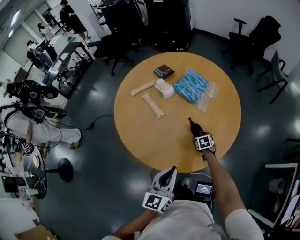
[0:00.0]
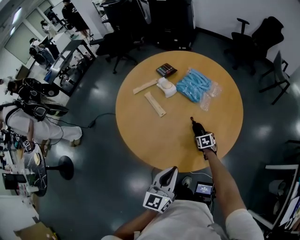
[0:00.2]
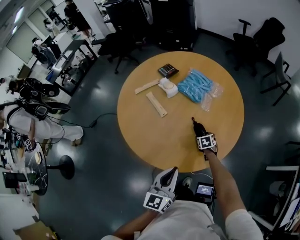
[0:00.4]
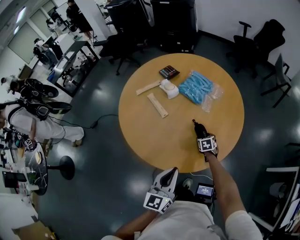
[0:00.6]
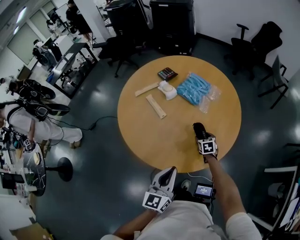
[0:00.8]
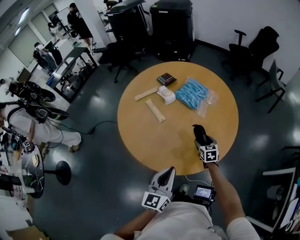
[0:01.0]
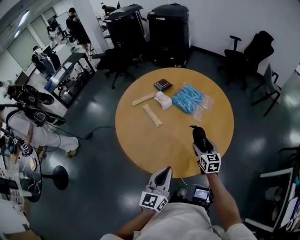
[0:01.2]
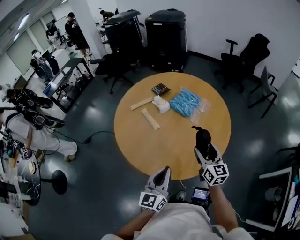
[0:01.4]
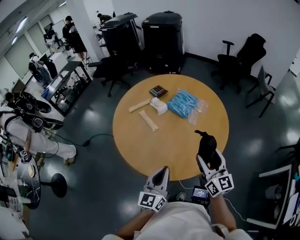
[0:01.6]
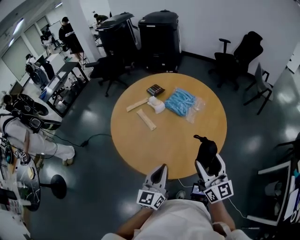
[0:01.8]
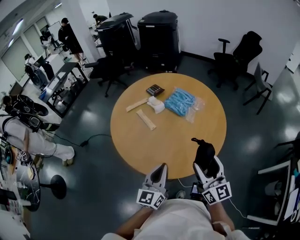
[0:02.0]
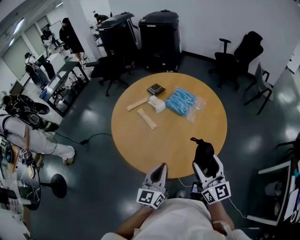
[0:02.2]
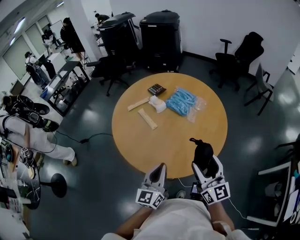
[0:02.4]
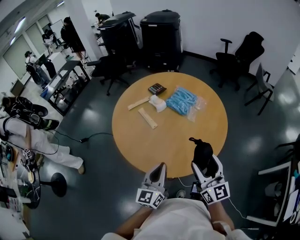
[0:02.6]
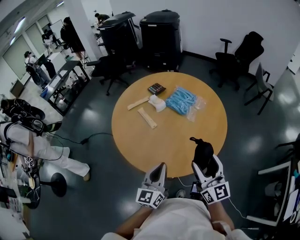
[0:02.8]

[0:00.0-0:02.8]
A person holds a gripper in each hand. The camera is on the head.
0:00.0 to 0:01.4: The right gripper travels upward by roughly 30 cm, and angles its fingers upward, by approximately 50 degrees.
0:01.4 to 0:02.8: The right gripper heads backward and upward, covering approximately 15 cm.

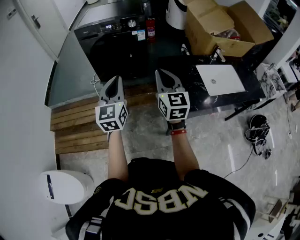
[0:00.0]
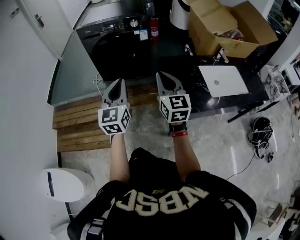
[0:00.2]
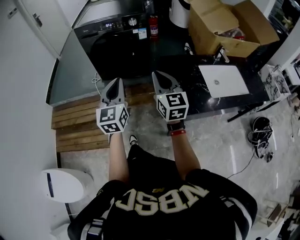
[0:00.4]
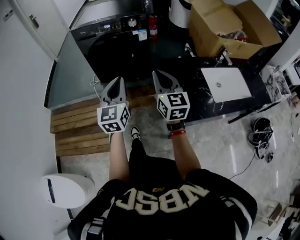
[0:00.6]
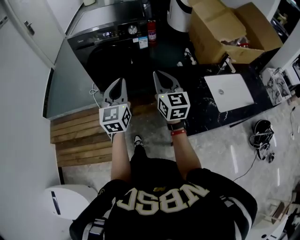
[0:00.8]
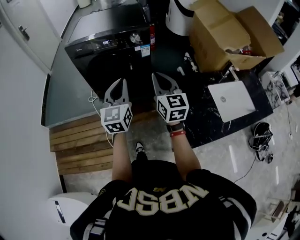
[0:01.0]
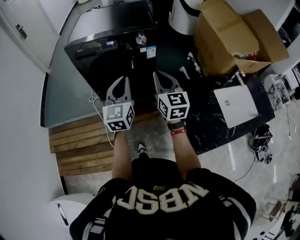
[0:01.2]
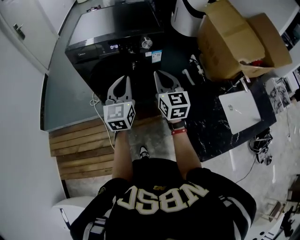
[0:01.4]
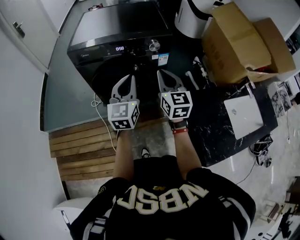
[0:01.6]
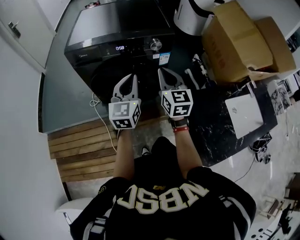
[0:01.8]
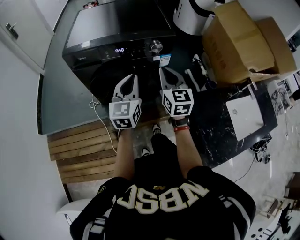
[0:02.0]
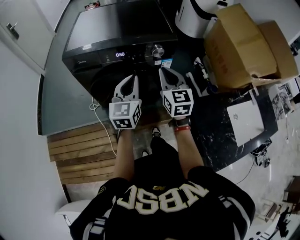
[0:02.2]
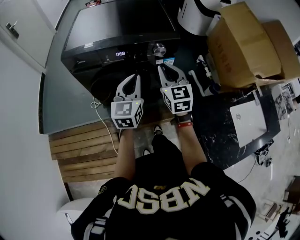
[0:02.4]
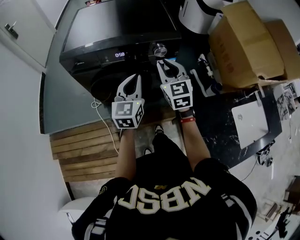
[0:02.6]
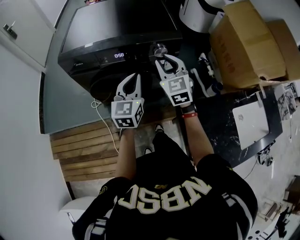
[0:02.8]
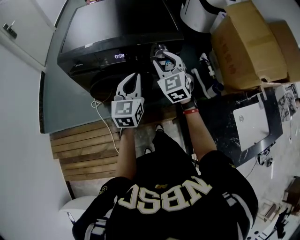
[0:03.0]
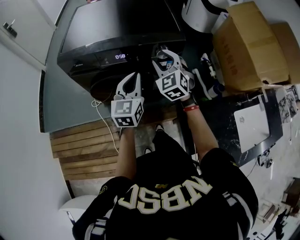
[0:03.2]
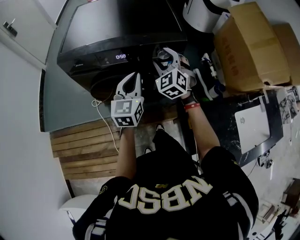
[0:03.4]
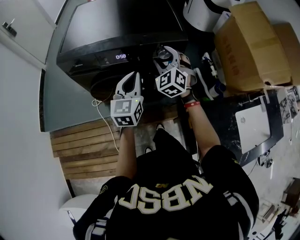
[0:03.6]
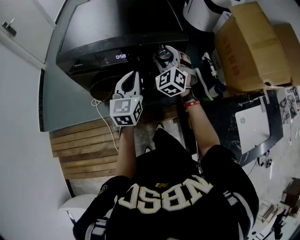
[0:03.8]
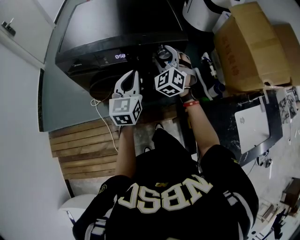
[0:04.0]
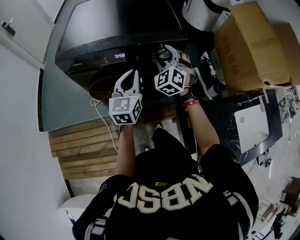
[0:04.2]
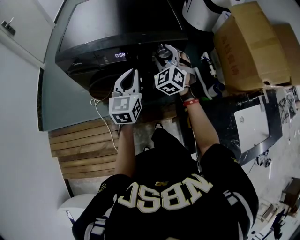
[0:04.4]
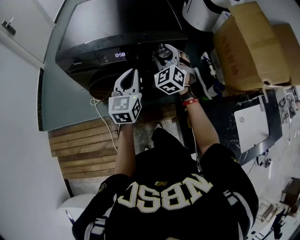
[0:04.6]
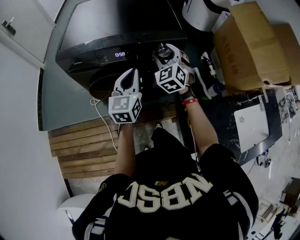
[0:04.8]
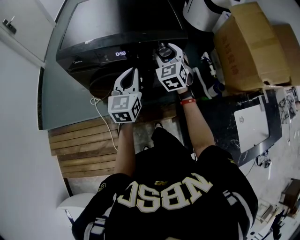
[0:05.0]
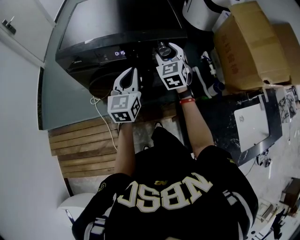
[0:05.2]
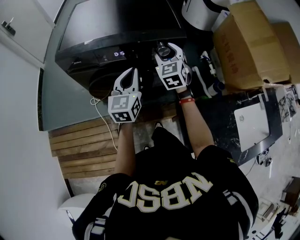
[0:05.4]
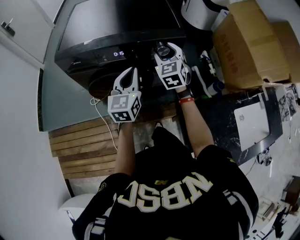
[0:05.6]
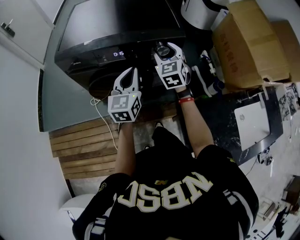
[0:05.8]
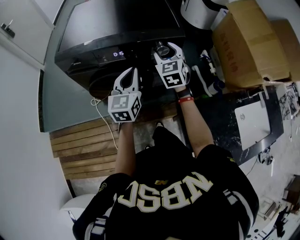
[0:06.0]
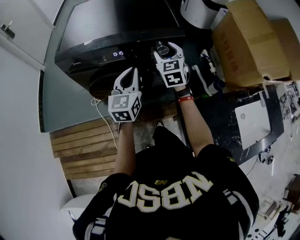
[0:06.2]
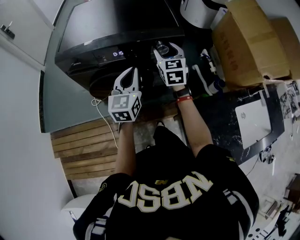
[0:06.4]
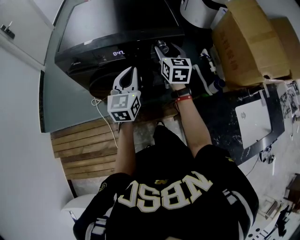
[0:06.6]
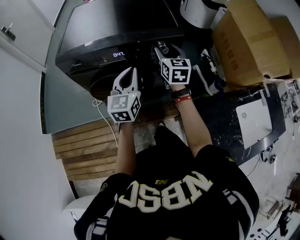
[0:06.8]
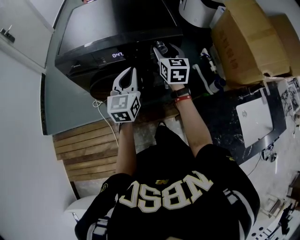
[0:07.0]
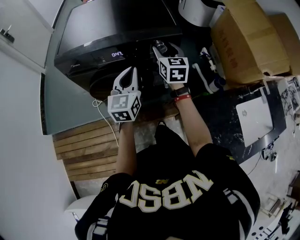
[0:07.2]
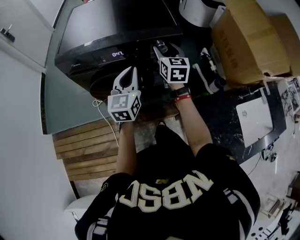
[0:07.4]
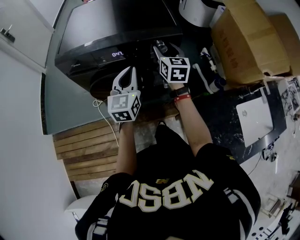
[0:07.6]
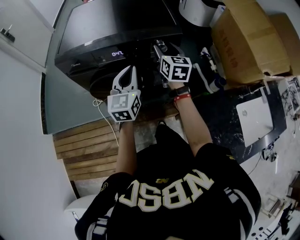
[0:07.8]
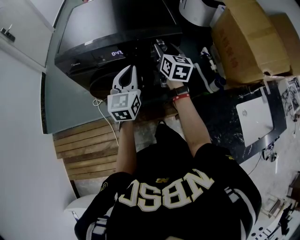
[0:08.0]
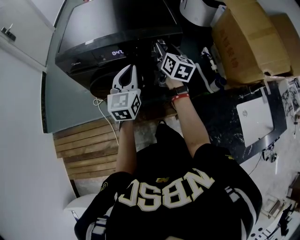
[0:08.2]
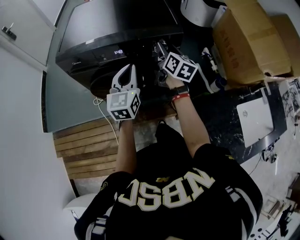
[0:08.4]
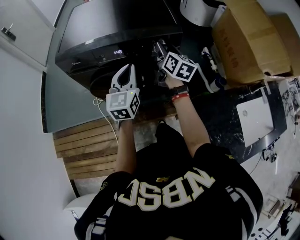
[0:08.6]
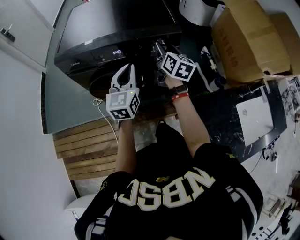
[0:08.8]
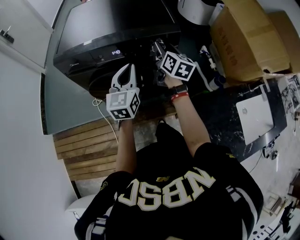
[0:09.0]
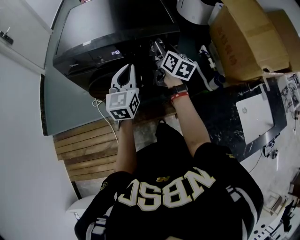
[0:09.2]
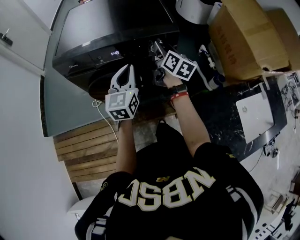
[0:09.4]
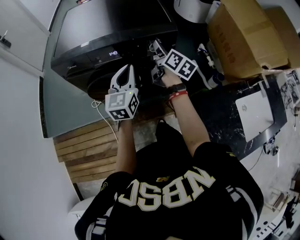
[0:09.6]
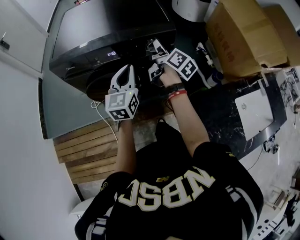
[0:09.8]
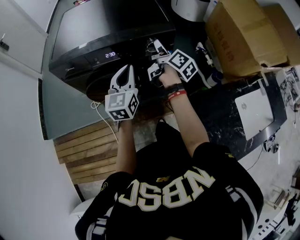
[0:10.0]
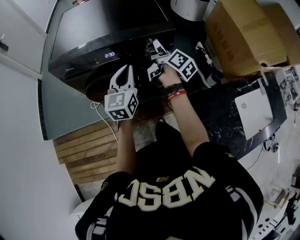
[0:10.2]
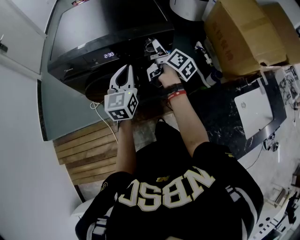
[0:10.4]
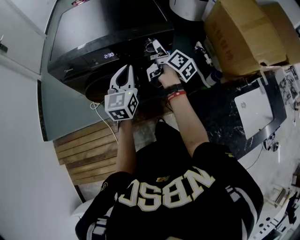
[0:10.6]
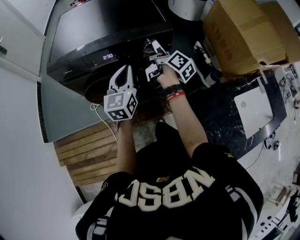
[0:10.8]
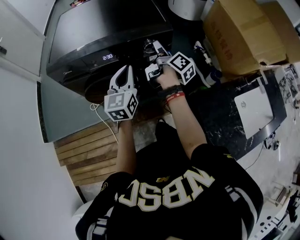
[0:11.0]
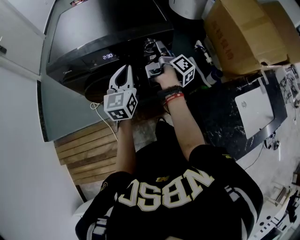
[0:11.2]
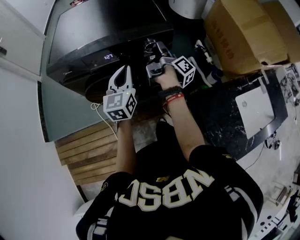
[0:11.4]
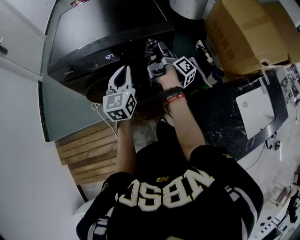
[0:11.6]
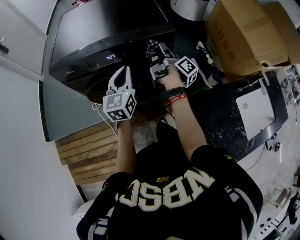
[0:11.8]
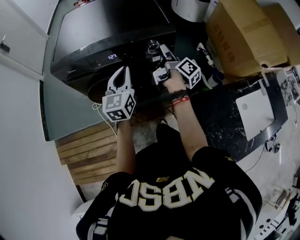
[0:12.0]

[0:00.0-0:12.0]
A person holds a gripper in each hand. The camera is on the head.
0:00.0 to 0:01.6: The pair of grippers is taken forward, some 40 cm.
0:01.6 to 0:03.0: The two grippers go about 15 cm forward. The right gripper changes its angle by about 30 degrees, and opens up.
0:03.0 to 0:04.4: The right gripper is displaced forward by approximately 5 cm, and swivels roughly 20 degrees.
0:04.4 to 0:06.0: The right gripper swivels approximately 30 degrees.
0:06.0 to 0:07.6: The right gripper turns by some 30 degrees.
0:07.6 to 0:09.0: The right gripper rotates roughly 20 degrees.
0:09.0 to 0:10.4: The right gripper turns by roughly 40 degrees.

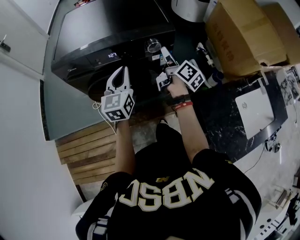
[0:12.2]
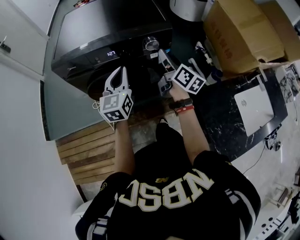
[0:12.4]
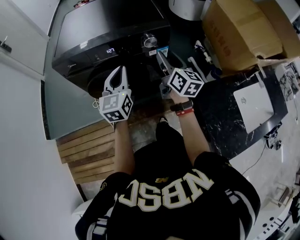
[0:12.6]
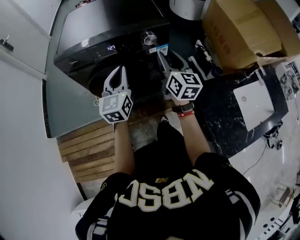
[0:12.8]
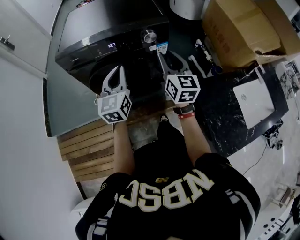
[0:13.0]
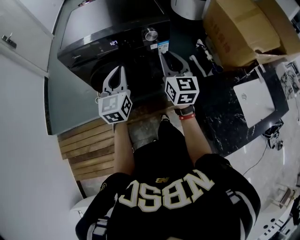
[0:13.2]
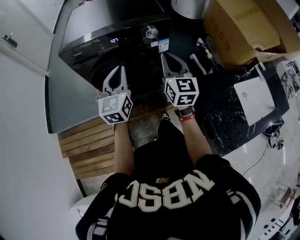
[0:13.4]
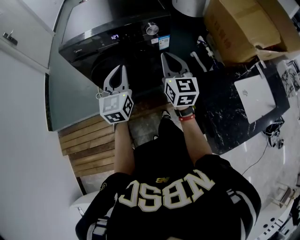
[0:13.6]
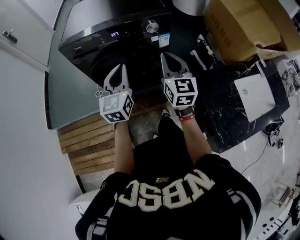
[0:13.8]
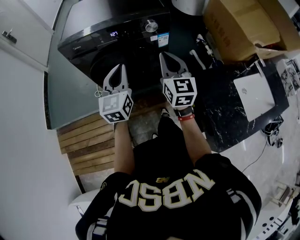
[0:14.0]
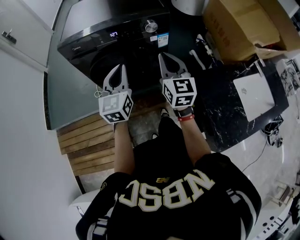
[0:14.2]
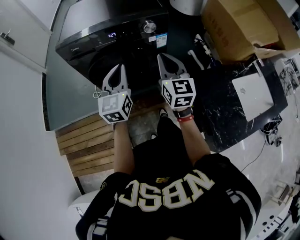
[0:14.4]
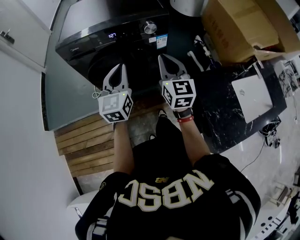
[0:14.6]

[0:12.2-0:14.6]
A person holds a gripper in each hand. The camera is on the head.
0:12.2 to 0:13.4: Both grippers move backward, some 15 cm. The right gripper rotates around the line of its fingers by approximately 60 degrees, counterclockwise from behind, and closes up.
0:13.4 to 0:14.6: The grippers move only a little.

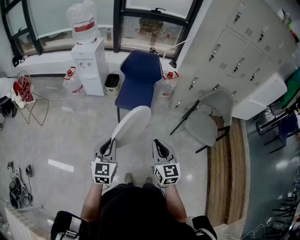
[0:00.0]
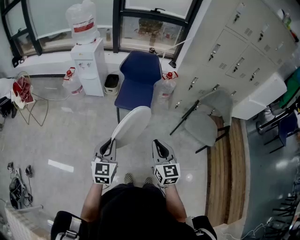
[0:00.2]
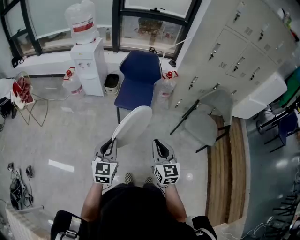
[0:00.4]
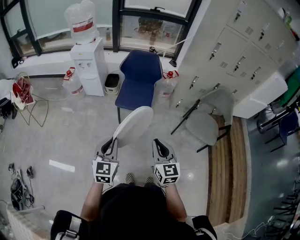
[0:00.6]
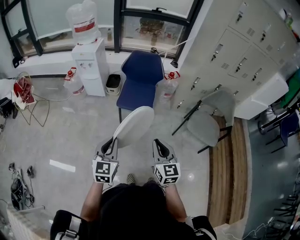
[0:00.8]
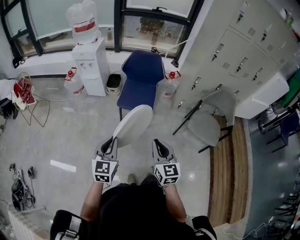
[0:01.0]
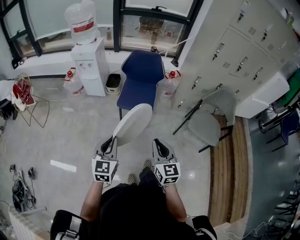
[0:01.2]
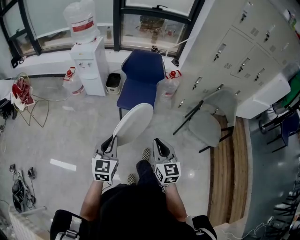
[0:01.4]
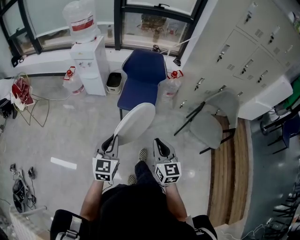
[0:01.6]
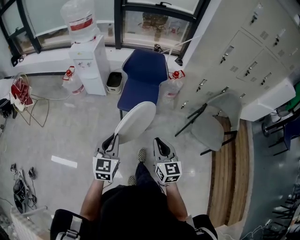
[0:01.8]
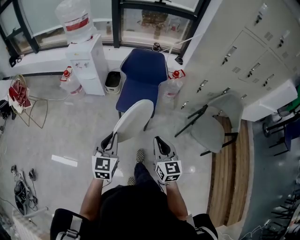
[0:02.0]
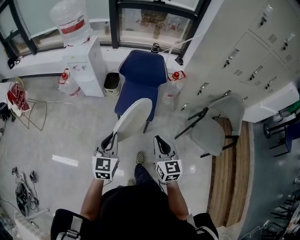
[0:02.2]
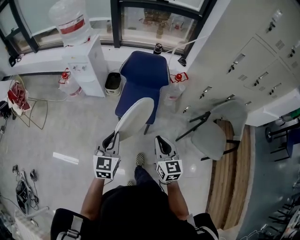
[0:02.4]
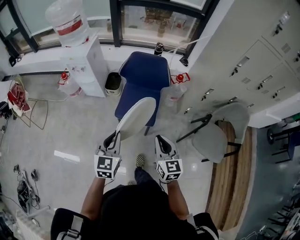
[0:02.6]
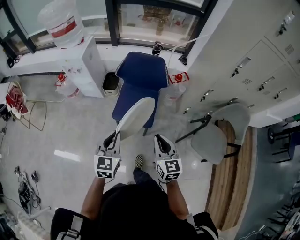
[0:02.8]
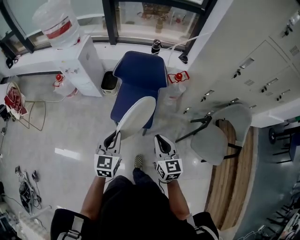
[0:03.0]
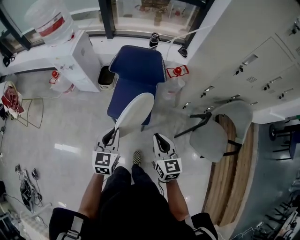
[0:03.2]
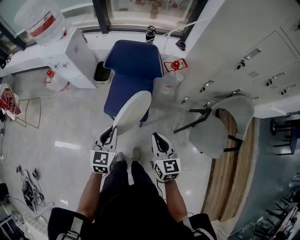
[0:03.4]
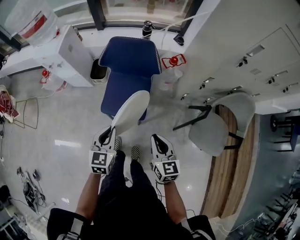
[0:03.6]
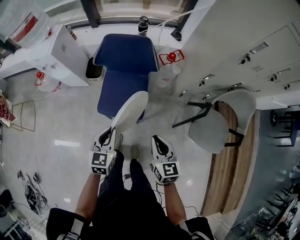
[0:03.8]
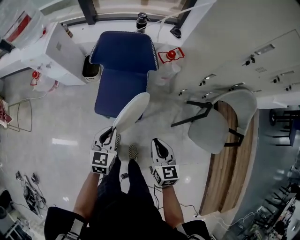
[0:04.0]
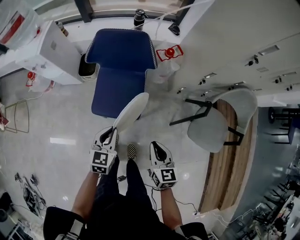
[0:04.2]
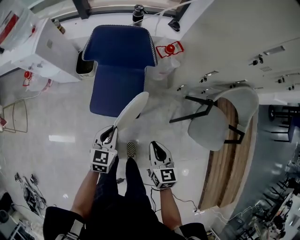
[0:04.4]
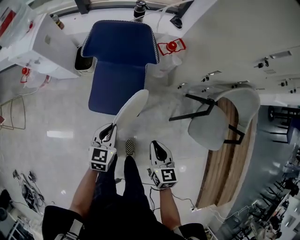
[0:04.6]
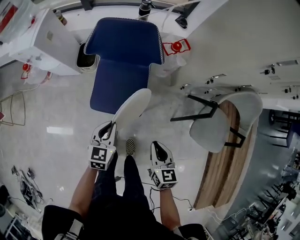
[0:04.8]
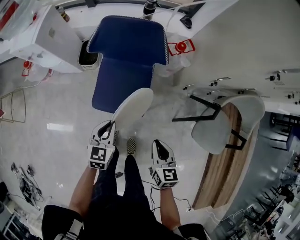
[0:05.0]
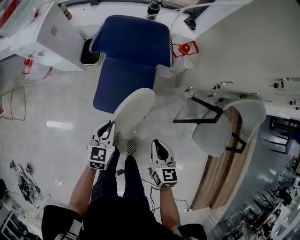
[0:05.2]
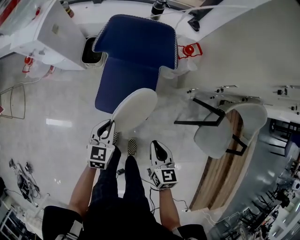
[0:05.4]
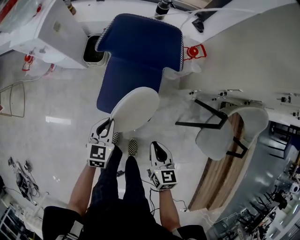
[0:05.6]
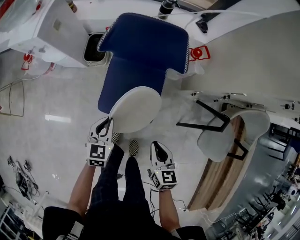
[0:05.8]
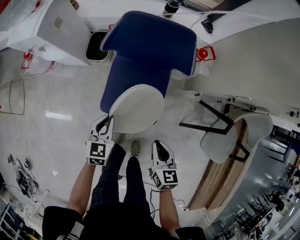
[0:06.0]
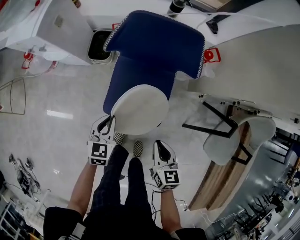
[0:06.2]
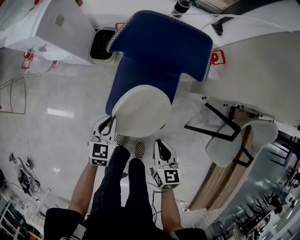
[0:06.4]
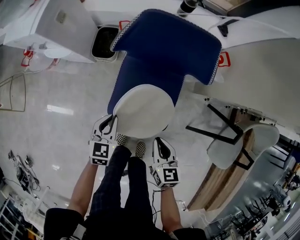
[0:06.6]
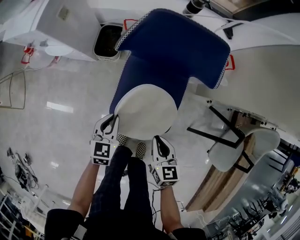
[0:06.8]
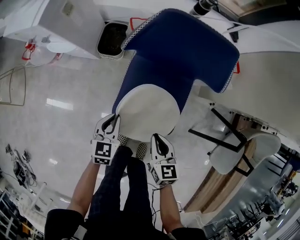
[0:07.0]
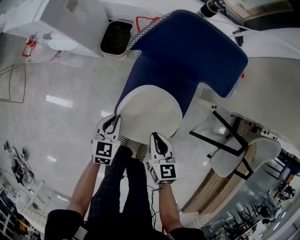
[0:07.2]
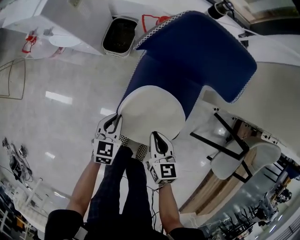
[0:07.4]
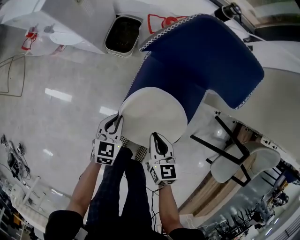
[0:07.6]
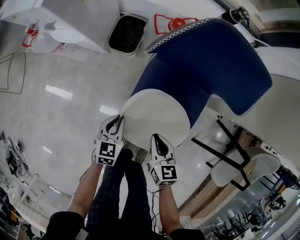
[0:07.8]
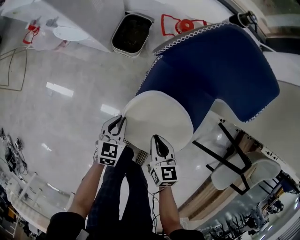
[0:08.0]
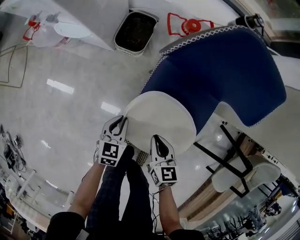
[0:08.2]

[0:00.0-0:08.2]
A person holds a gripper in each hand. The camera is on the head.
0:00.0 to 0:01.6: The grippers both shift forward by about 10 cm.
0:01.6 to 0:03.2: Both grippers travel together forward, approximately 35 cm.
0:03.2 to 0:05.0: The right gripper heads downward, covering approximately 20 cm, and swivels approximately 20 degrees, while the left gripper moves downward and forward, about 25 cm.
0:05.0 to 0:06.6: The right gripper goes approximately 25 cm to the left, forward and downward; the left gripper travels to the left, downward and forward by approximately 25 cm.
0:06.6 to 0:08.2: The left gripper heads downward and to the left, covering approximately 20 cm; the right gripper travels downward, to the left and forward by about 25 cm.
